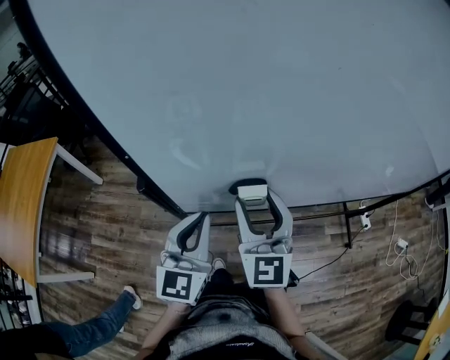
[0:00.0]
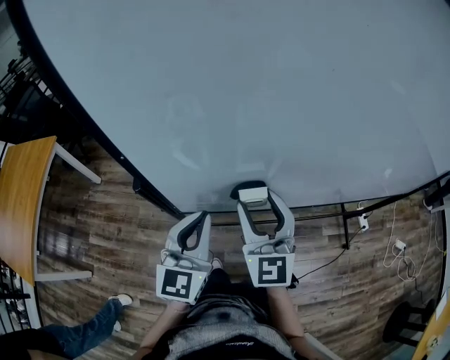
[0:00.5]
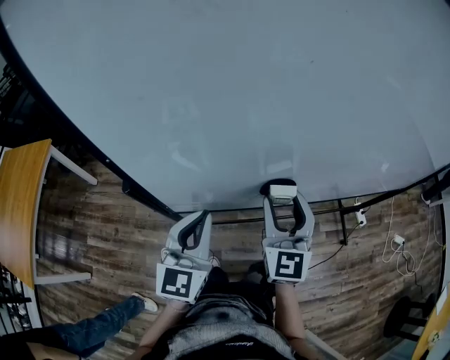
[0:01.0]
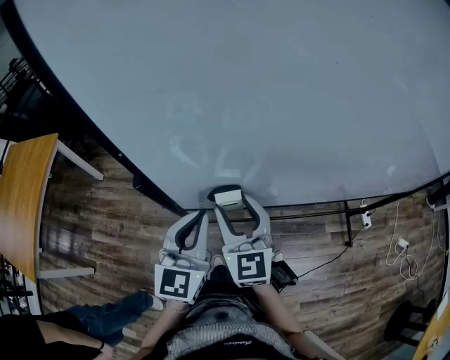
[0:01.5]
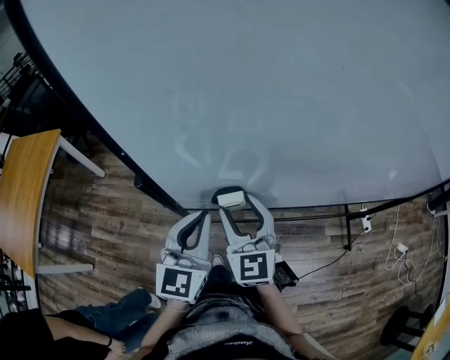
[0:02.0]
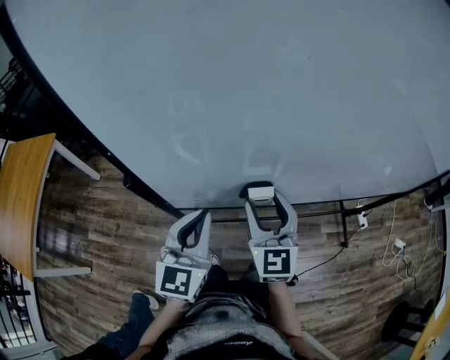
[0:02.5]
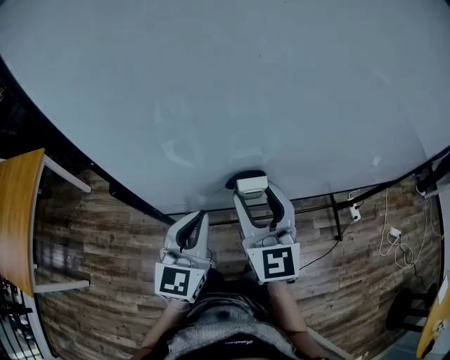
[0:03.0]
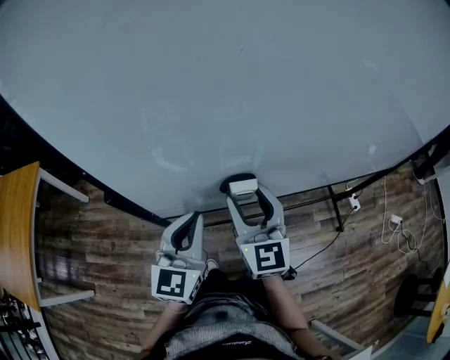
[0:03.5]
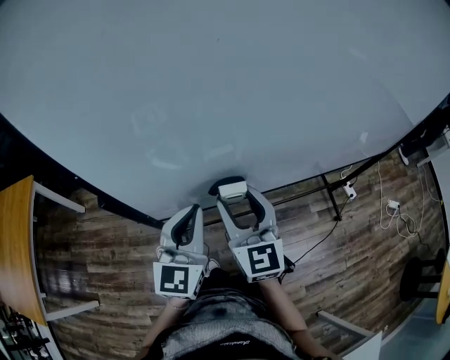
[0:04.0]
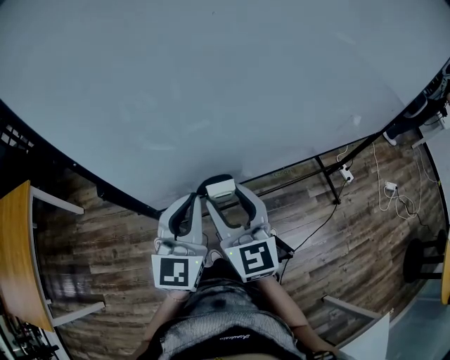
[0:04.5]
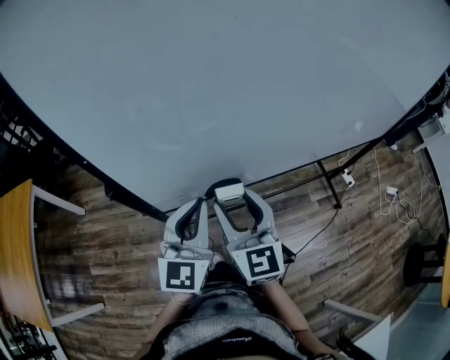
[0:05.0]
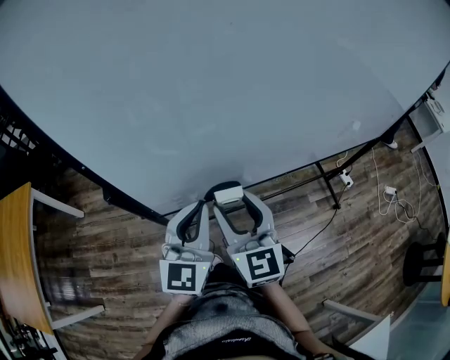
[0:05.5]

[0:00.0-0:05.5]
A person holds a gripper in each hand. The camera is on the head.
0:00.0 to 0:02.0: The right gripper heads downward, covering some 5 cm, and travels to the right and back again, roughly 10 cm each way.
0:02.0 to 0:03.5: The right gripper shifts roughly 10 cm to the right, while the left gripper goes approximately 5 cm to the right.
0:03.5 to 0:05.5: The right gripper goes some 5 cm backward.

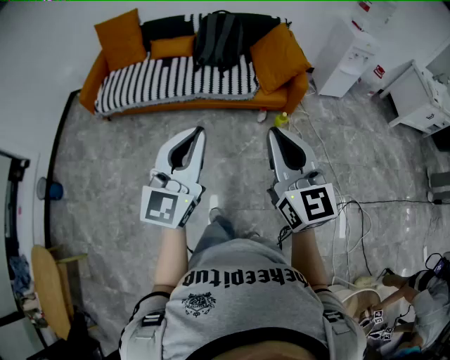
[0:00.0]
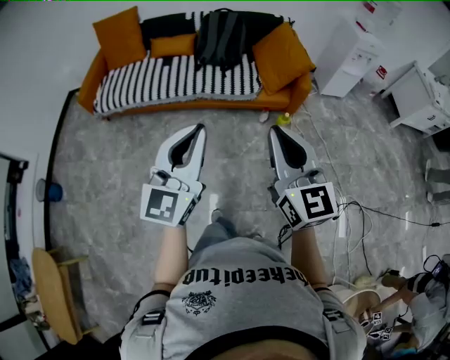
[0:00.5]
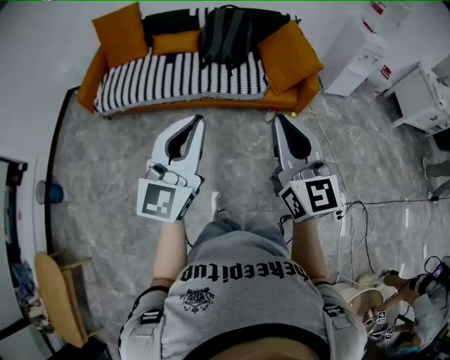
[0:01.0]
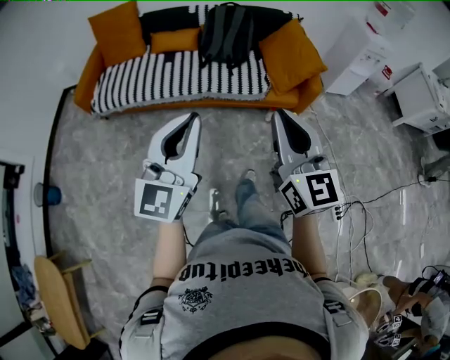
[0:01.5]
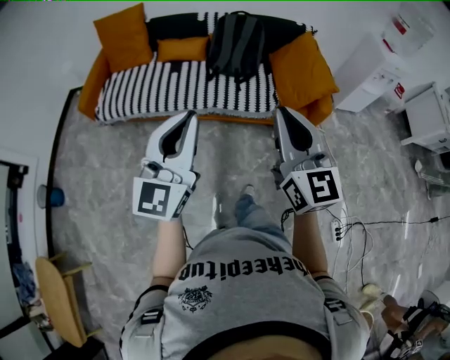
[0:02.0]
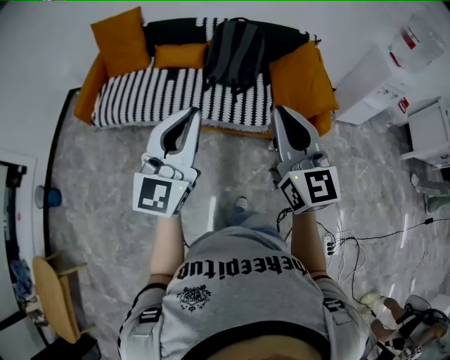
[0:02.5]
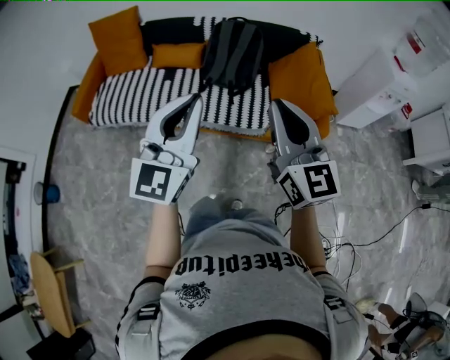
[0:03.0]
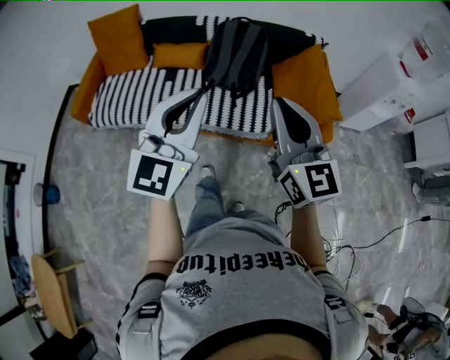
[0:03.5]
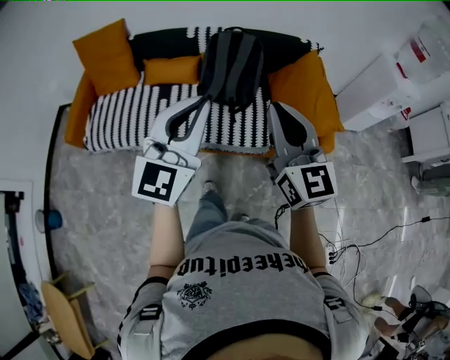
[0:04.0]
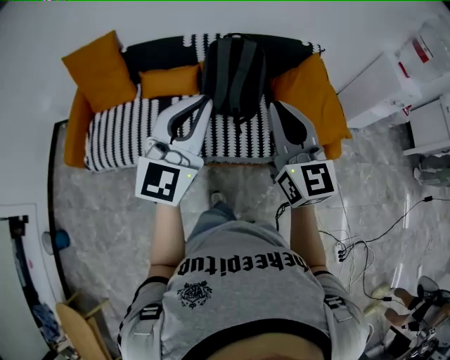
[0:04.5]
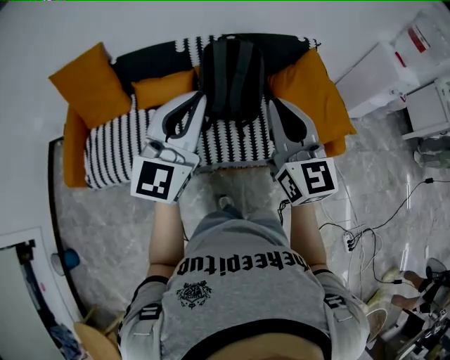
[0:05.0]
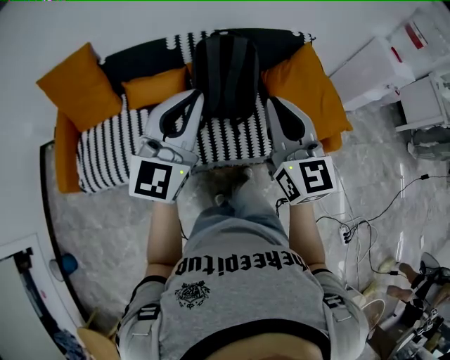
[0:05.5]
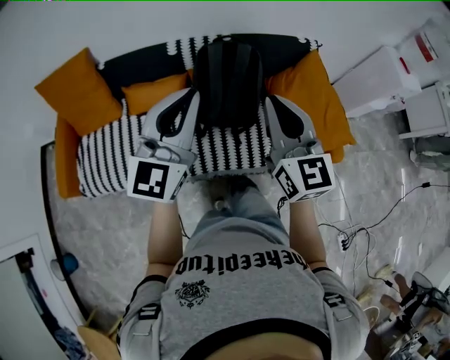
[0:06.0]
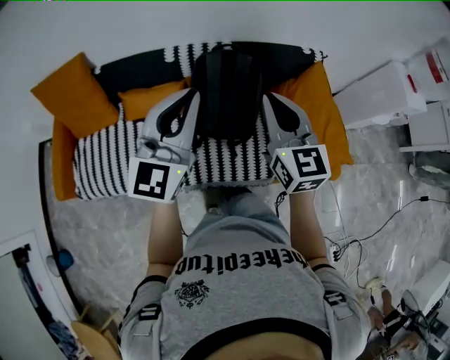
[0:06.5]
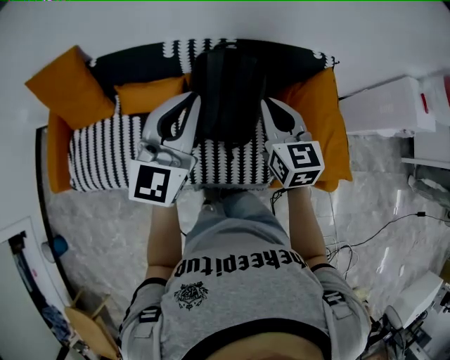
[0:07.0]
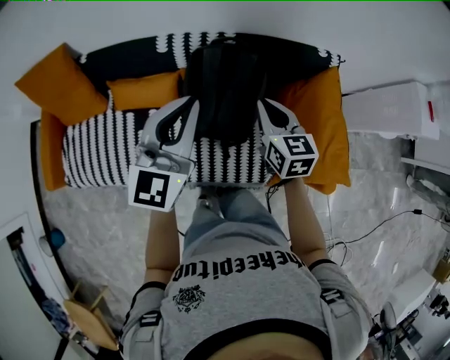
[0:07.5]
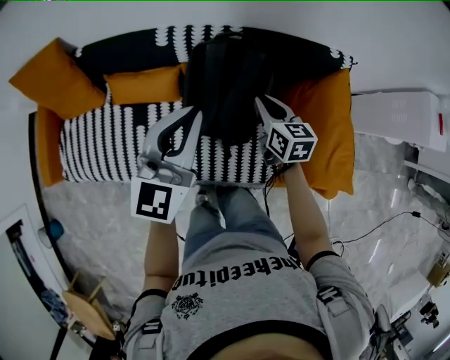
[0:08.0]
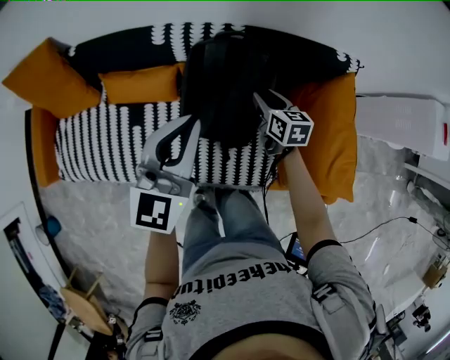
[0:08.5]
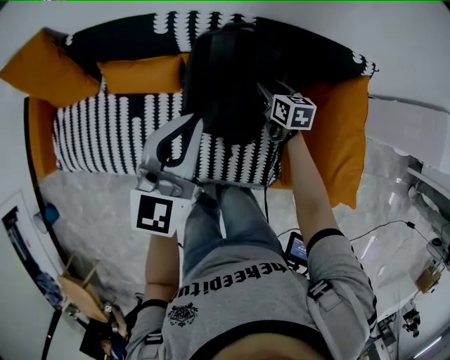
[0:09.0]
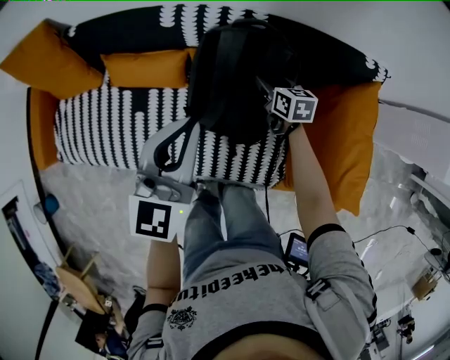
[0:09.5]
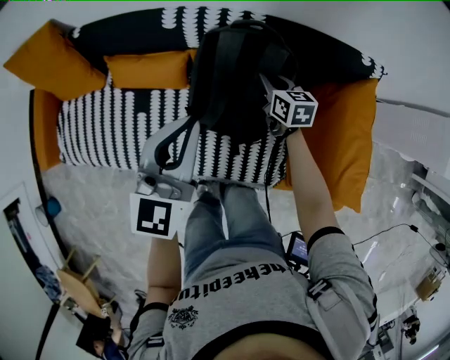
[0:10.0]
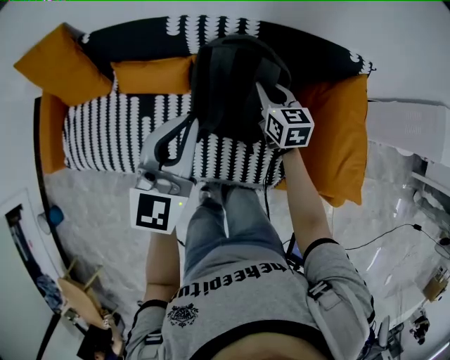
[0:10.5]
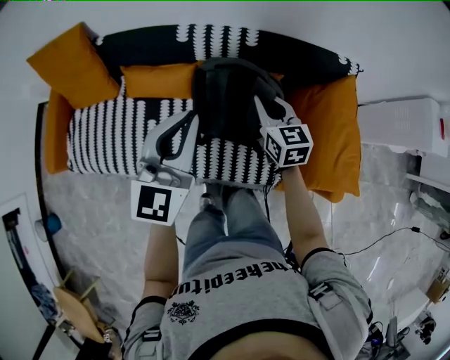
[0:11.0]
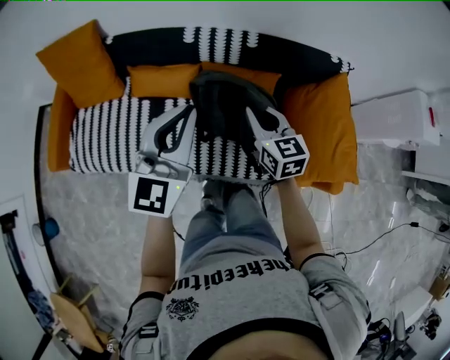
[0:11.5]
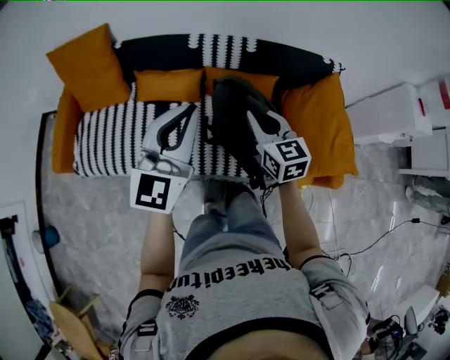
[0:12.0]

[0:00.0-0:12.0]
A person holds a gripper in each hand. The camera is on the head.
0:00.0 to 0:02.0: The right gripper moves forward, roughly 25 cm; the left gripper heads forward and to the left, covering roughly 25 cm.
0:02.0 to 0:04.0: Both grippers travel together forward, some 25 cm.
0:04.0 to 0:06.0: Both grippers travel together forward and to the left, approximately 25 cm.
0:06.0 to 0:08.0: The right gripper goes roughly 35 cm downward and forward, and tilts its fingers approximately 30 degrees downward. Meanwhile the left gripper heads forward and downward, covering some 20 cm.
0:08.0 to 0:10.0: The right gripper is displaced downward and forward by about 15 cm, and opens, then closes again. The left gripper goes some 5 cm downward.
0:10.0 to 0:12.0: The left gripper travels backward, upward and to the left by about 25 cm. The right gripper moves backward, upward and to the left, approximately 40 cm, and swivels approximately 30 degrees.

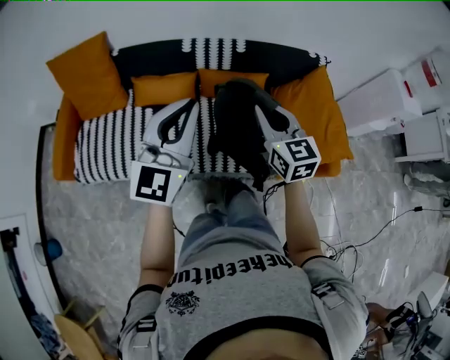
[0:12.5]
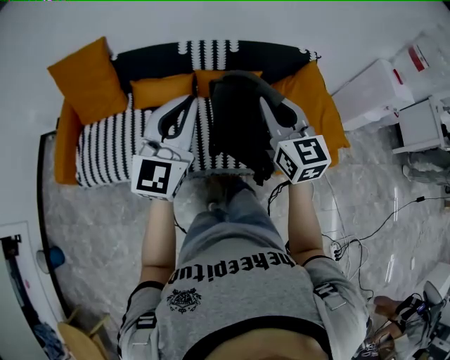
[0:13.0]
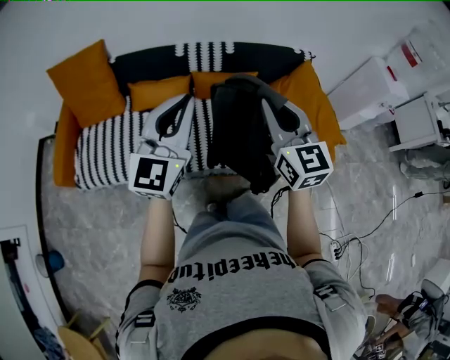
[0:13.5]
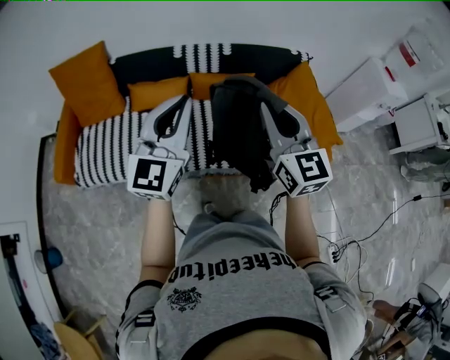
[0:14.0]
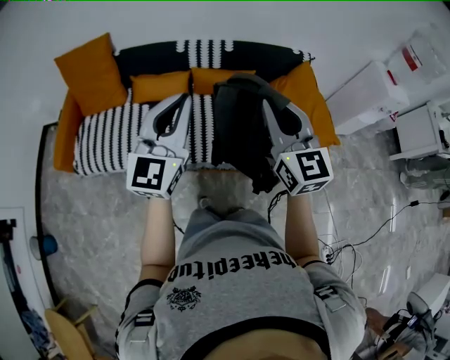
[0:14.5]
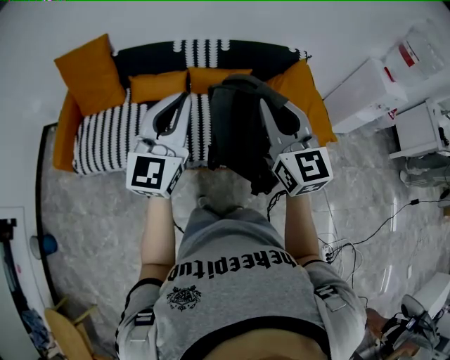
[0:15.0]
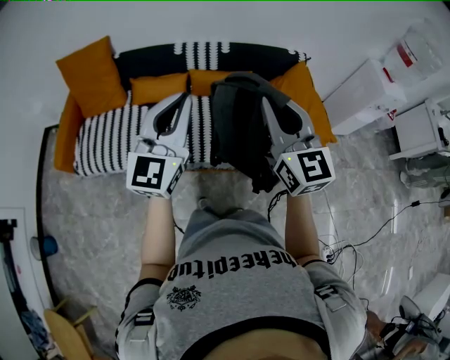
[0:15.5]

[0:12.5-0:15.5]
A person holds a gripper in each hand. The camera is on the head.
0:12.5 to 0:14.0: The right gripper moves upward and backward, some 15 cm, while the left gripper ends up about 5 cm from where it was.
0:14.0 to 0:15.5: Both grippers move backward, some 5 cm.

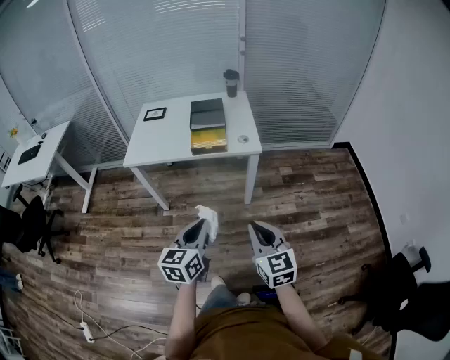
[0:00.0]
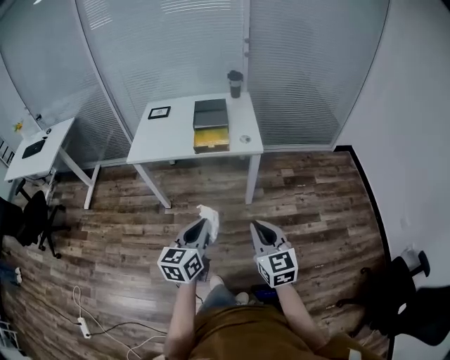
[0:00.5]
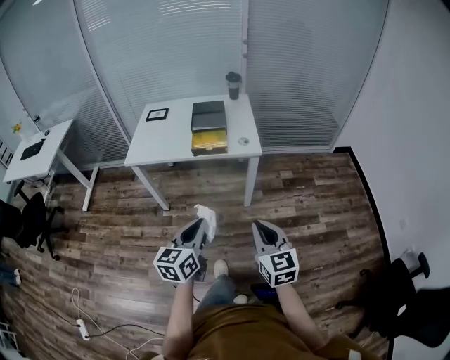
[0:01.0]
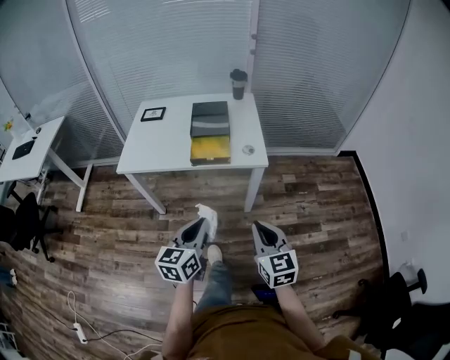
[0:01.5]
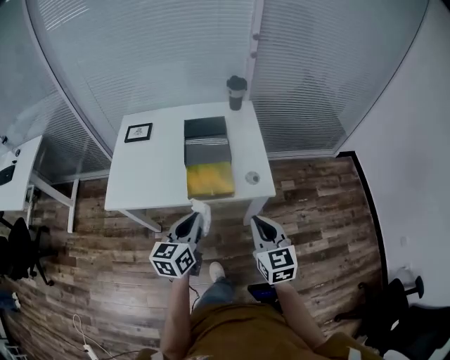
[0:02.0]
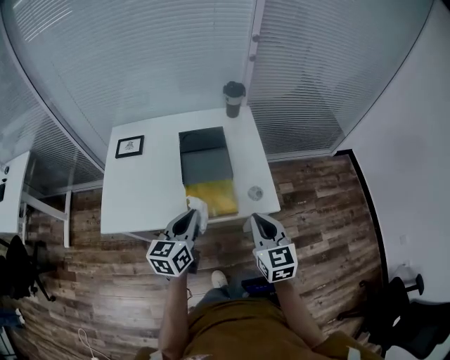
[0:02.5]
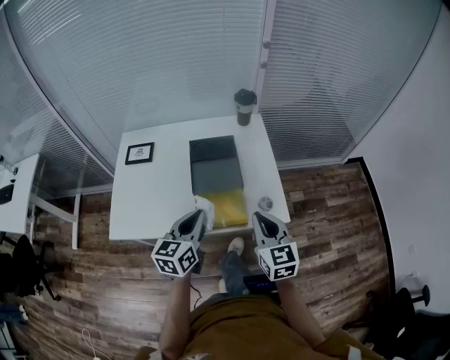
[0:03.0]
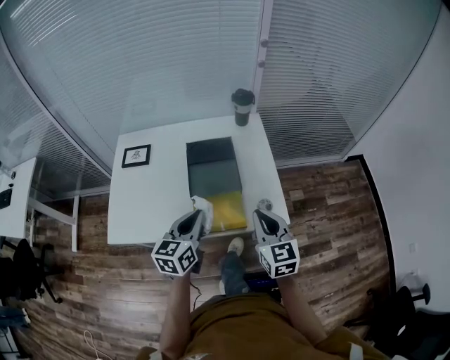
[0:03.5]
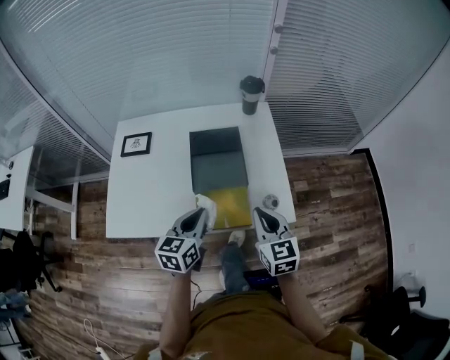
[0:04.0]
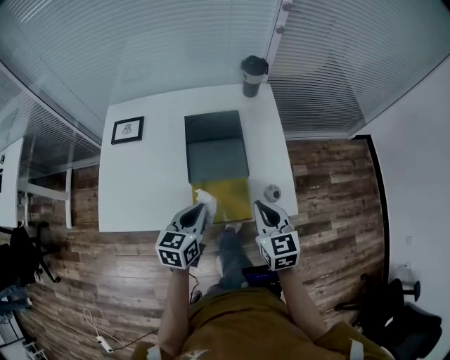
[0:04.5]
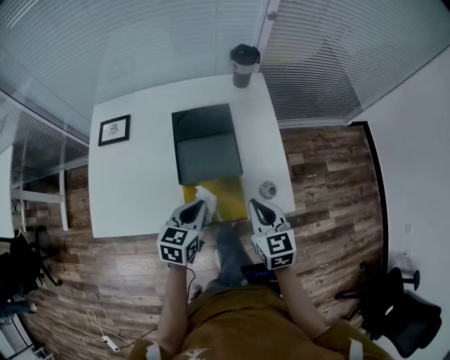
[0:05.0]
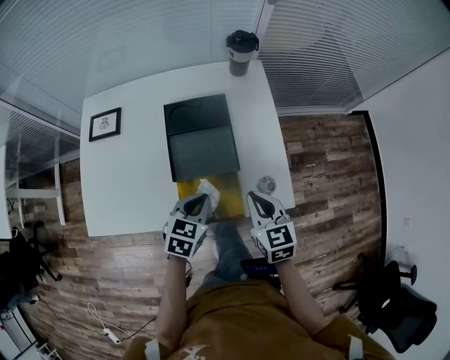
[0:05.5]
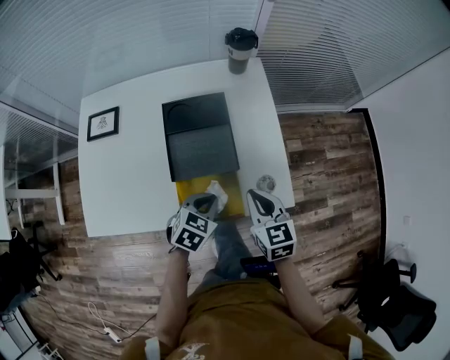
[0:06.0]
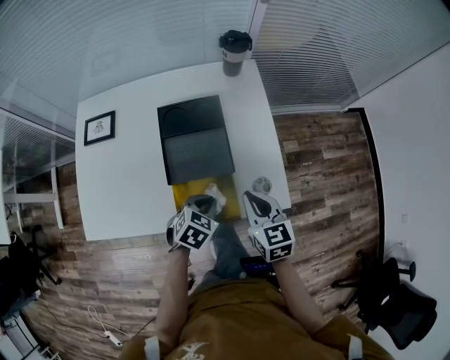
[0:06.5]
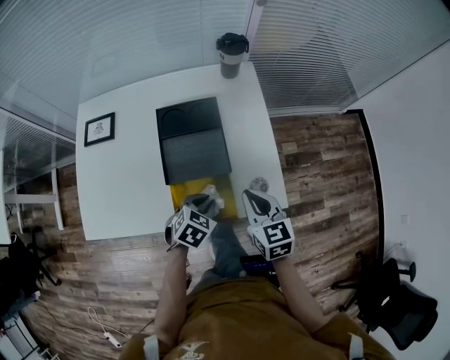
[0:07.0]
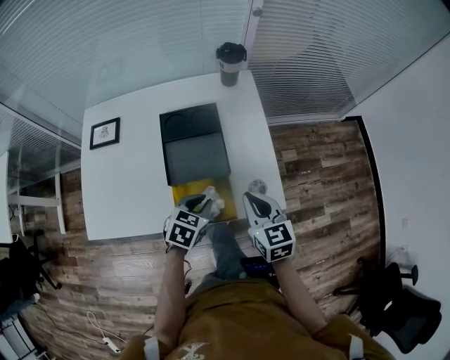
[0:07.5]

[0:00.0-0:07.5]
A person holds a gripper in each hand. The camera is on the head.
0:00.0 to 0:02.0: Both grippers move forward, about 30 cm.
0:02.0 to 0:04.0: Both grippers move forward, approximately 15 cm.
0:04.0 to 0:05.5: The two grippers go roughly 10 cm downward. The left gripper rotates approximately 30 degrees.
0:05.5 to 0:07.5: The grippers stay close to where they were, moving slightly.
